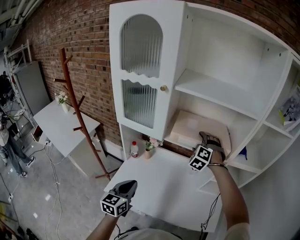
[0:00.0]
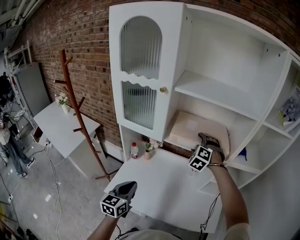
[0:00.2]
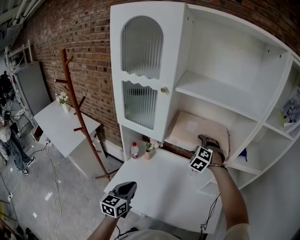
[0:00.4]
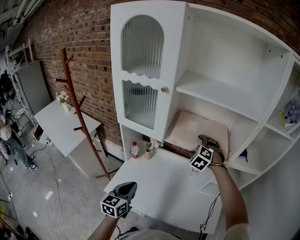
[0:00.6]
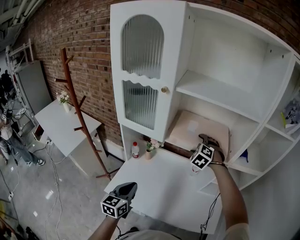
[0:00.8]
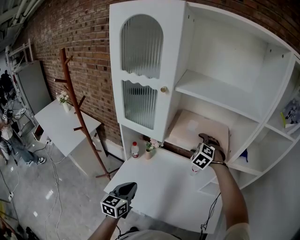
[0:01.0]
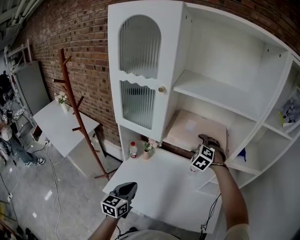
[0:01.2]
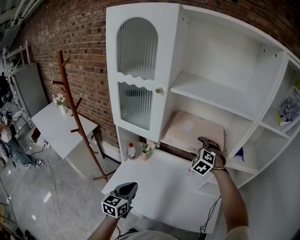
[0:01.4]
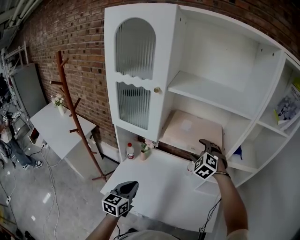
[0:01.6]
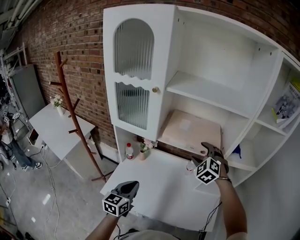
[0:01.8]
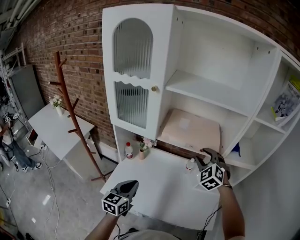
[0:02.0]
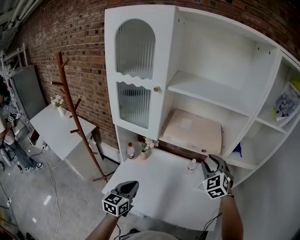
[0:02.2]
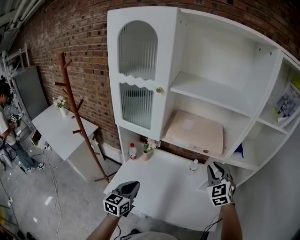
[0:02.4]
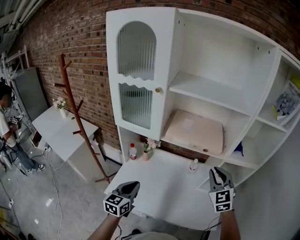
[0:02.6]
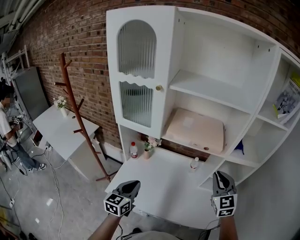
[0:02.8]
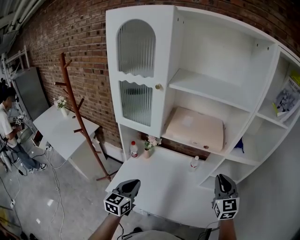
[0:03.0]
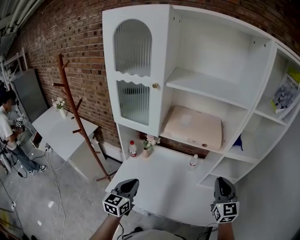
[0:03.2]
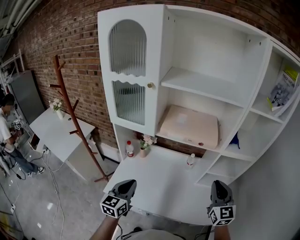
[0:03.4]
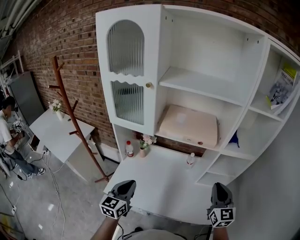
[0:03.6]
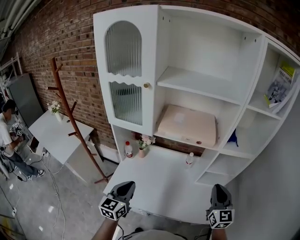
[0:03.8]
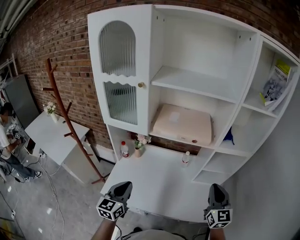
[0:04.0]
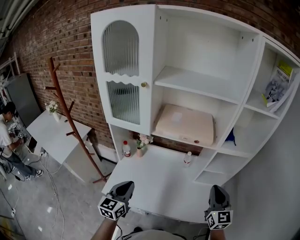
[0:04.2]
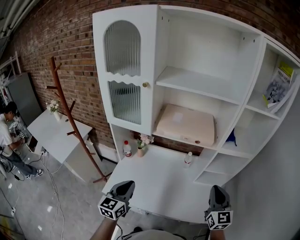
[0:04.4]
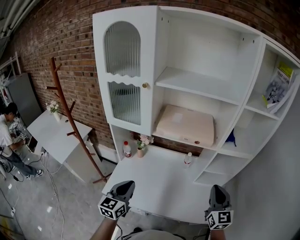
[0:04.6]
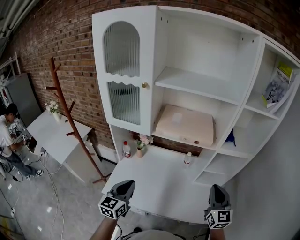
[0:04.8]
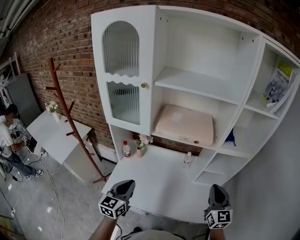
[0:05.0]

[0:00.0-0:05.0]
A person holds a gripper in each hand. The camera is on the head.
0:00.0 to 0:01.6: The right gripper shifts about 5 cm backward.
0:01.6 to 0:03.4: The right gripper is displaced backward and to the right by about 25 cm, twists about 50 degrees clockwise, seen from behind, and closes up.
0:03.4 to 0:05.0: There are only small adjustments of the grippers.

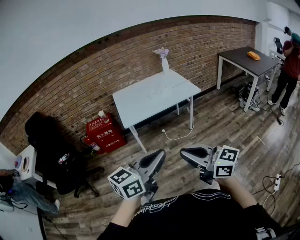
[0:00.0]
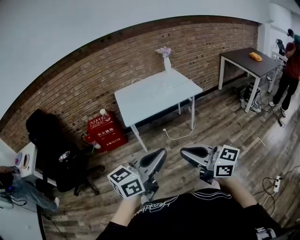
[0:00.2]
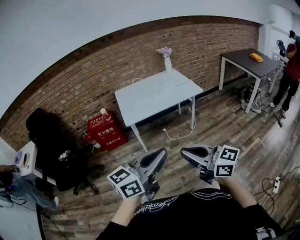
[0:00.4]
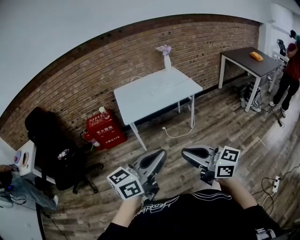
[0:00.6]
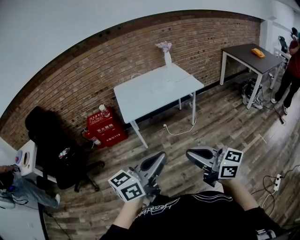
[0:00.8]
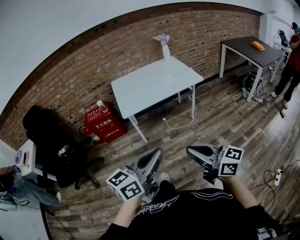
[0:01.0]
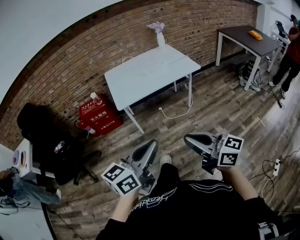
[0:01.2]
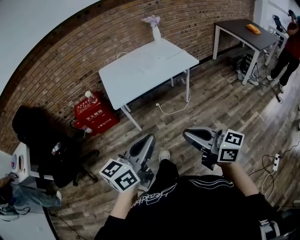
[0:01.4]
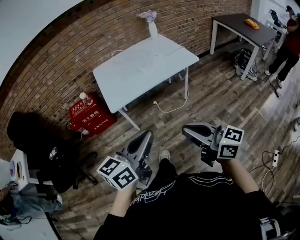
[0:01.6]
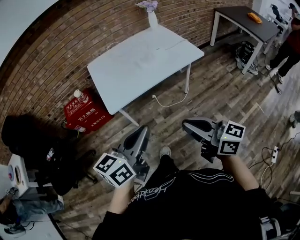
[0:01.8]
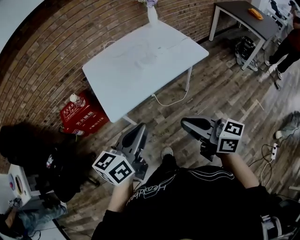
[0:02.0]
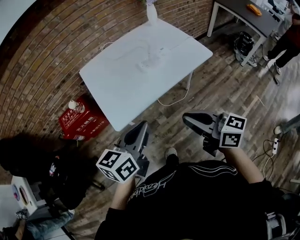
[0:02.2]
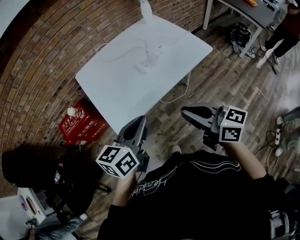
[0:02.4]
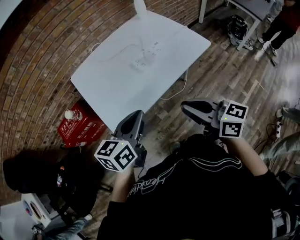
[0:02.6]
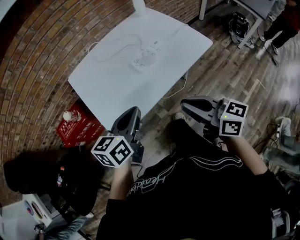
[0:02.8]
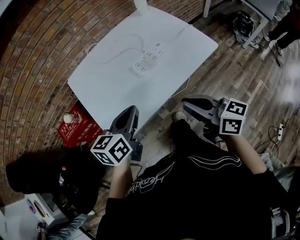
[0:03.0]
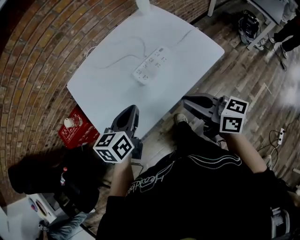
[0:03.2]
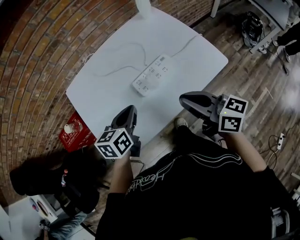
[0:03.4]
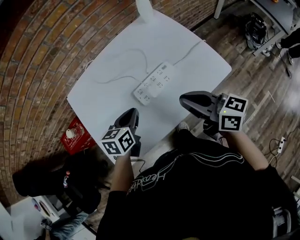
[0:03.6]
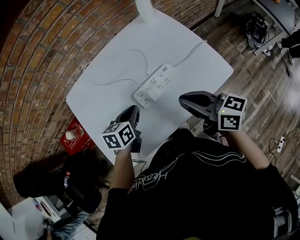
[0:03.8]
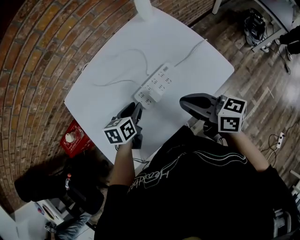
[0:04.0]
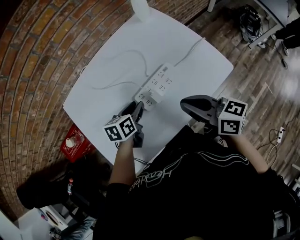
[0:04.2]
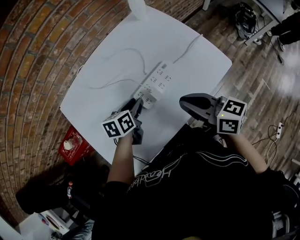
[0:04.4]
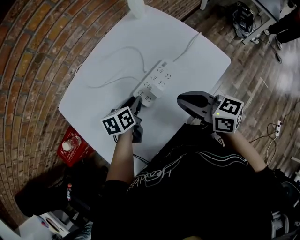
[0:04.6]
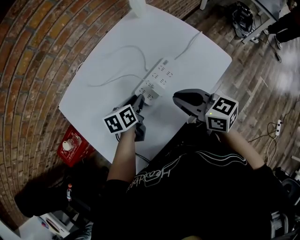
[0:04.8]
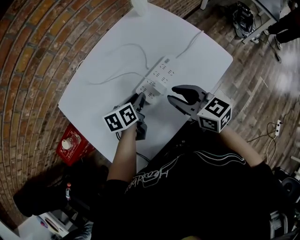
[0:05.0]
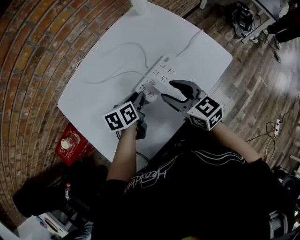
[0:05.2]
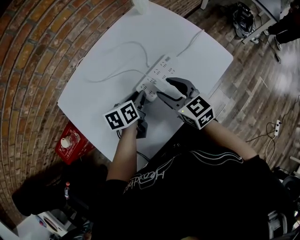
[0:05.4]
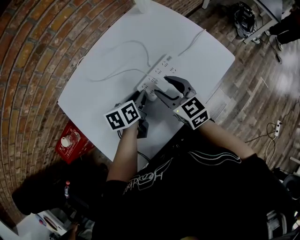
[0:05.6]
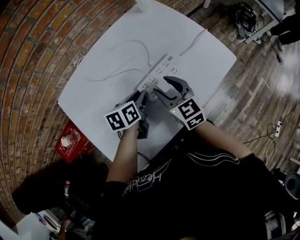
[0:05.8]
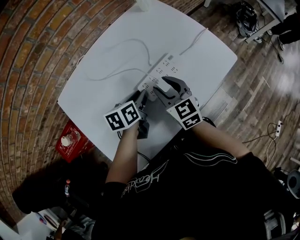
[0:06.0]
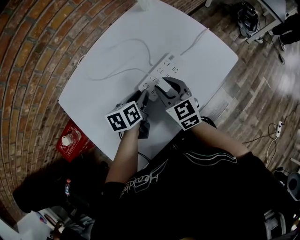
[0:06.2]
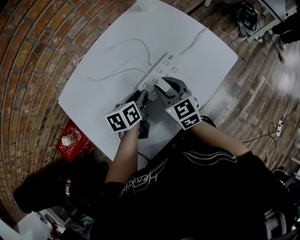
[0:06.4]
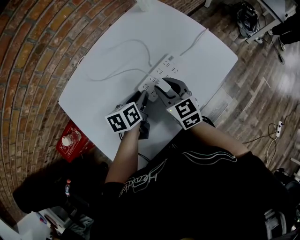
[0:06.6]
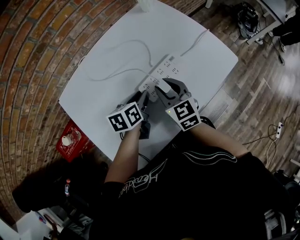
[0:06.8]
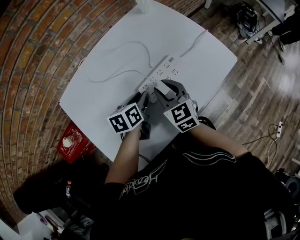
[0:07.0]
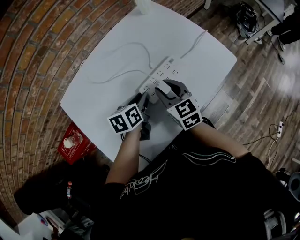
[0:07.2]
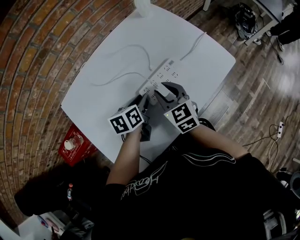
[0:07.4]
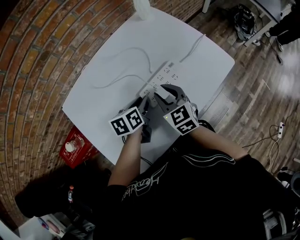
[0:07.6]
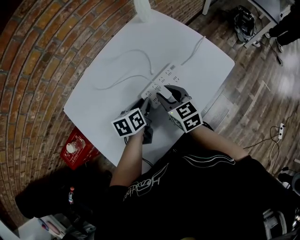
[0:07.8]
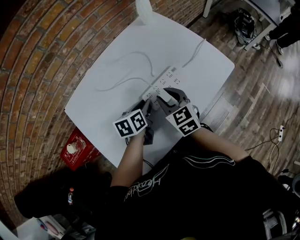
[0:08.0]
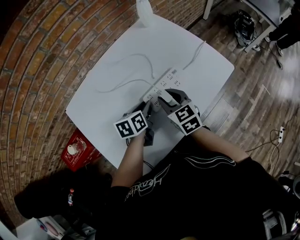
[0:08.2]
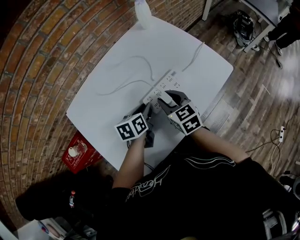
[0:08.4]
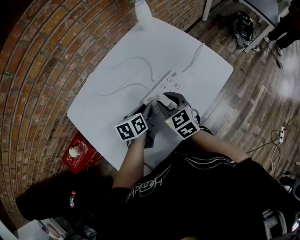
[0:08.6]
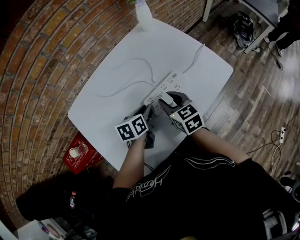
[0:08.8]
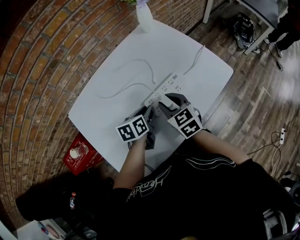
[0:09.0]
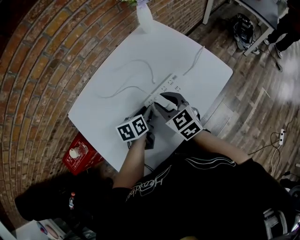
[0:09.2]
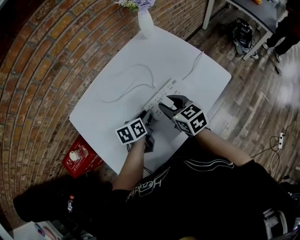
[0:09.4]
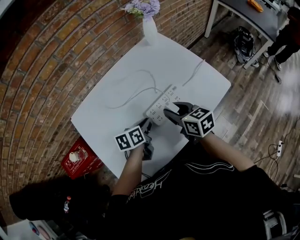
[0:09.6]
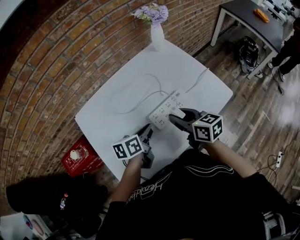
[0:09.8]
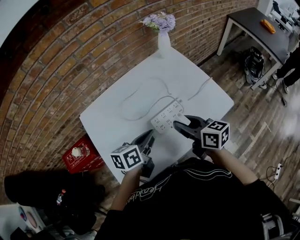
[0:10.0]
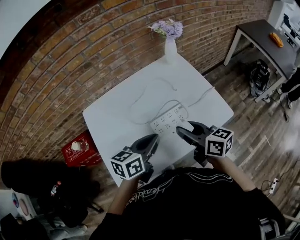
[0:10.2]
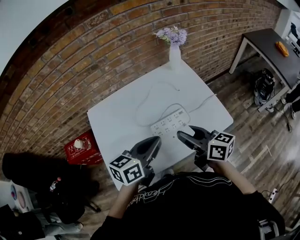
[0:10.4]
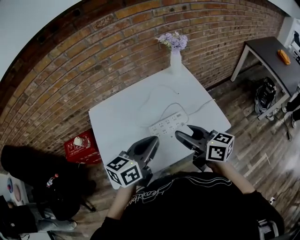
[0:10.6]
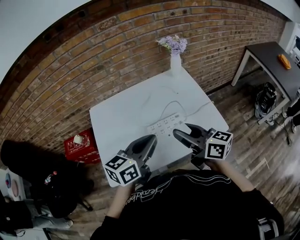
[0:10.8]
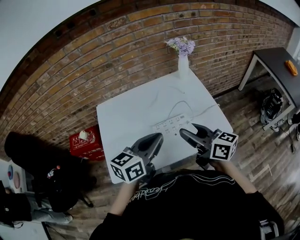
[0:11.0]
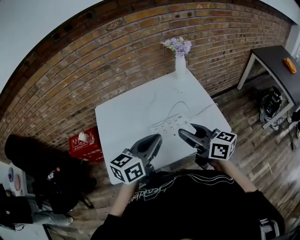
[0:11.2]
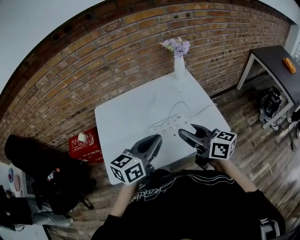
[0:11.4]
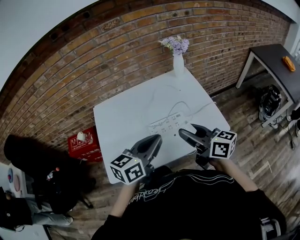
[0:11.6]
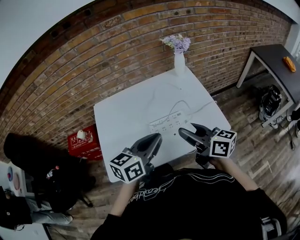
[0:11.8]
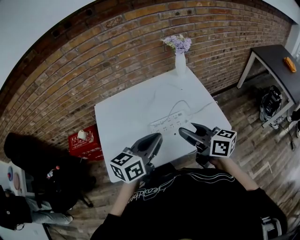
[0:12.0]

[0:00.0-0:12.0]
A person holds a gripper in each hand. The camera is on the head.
0:00.0 to 0:01.6: The right gripper moves forward and downward, about 20 cm. The left gripper is displaced forward by approximately 15 cm.
0:01.6 to 0:03.0: The two grippers travel together, forward, some 40 cm.
0:03.0 to 0:04.4: The left gripper shifts approximately 30 cm forward and downward, changes its angle by some 20 degrees, and opens its fingers, while the right gripper heads forward, covering roughly 20 cm.
0:04.4 to 0:06.0: The right gripper heads downward, to the left and forward, covering some 15 cm, turns by about 40 degrees, and opens its fingers.
0:06.0 to 0:09.0: There are only small adjustments of the grippers.
0:09.0 to 0:10.4: The left gripper is displaced upward by approximately 25 cm, swivels approximately 30 degrees, and closes its fingers. Meanwhile the right gripper moves upward and to the right, approximately 20 cm, and swivels some 50 degrees.
0:10.4 to 0:12.0: The left gripper changes place by about 5 cm. The right gripper ends up roughly 5 cm from where it was.

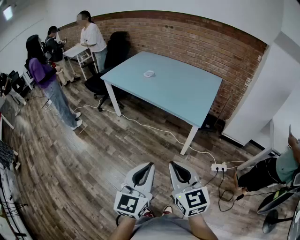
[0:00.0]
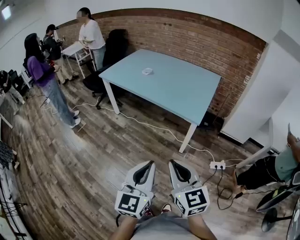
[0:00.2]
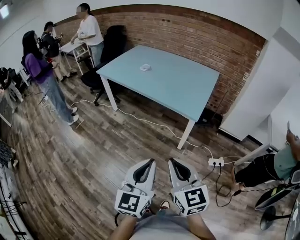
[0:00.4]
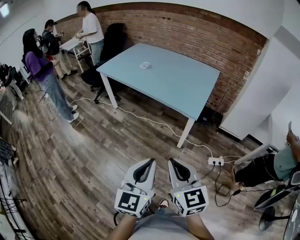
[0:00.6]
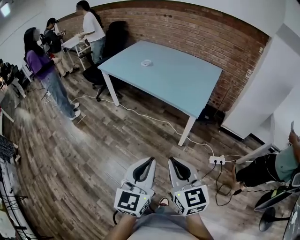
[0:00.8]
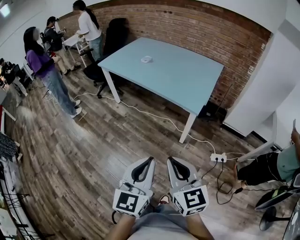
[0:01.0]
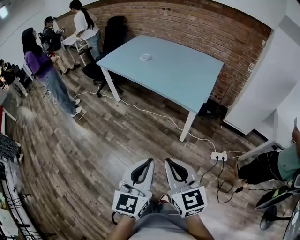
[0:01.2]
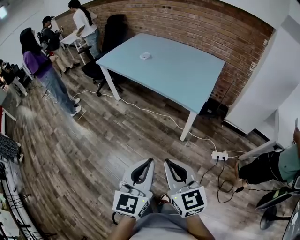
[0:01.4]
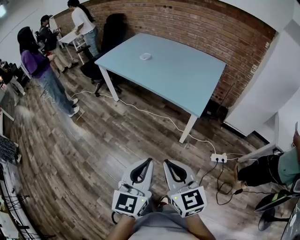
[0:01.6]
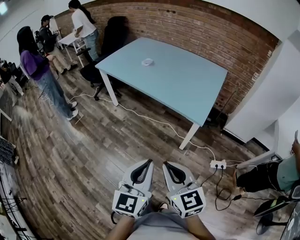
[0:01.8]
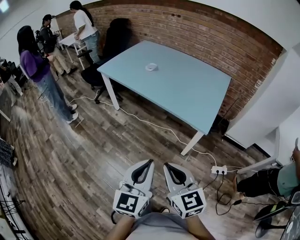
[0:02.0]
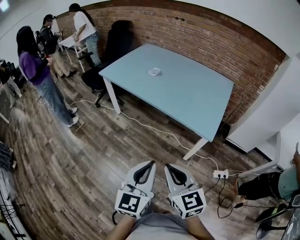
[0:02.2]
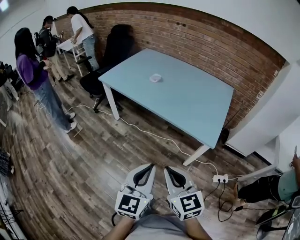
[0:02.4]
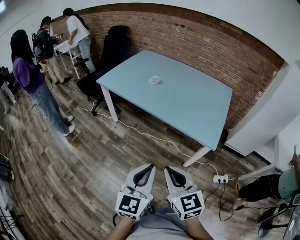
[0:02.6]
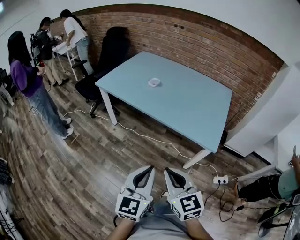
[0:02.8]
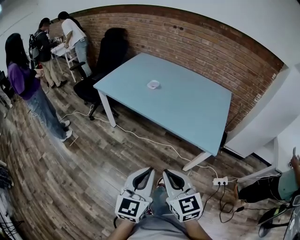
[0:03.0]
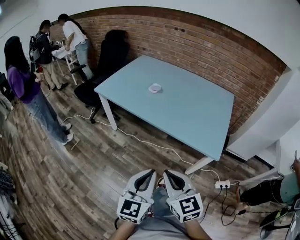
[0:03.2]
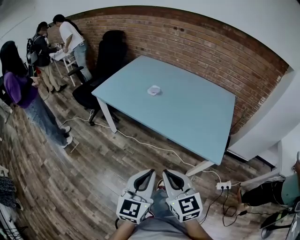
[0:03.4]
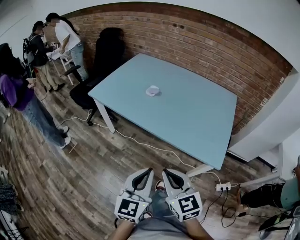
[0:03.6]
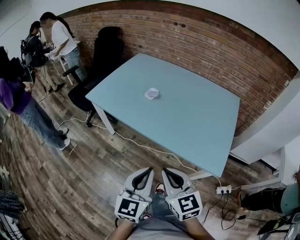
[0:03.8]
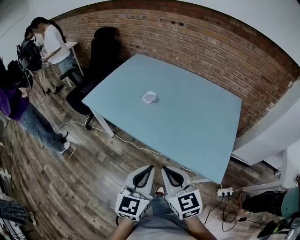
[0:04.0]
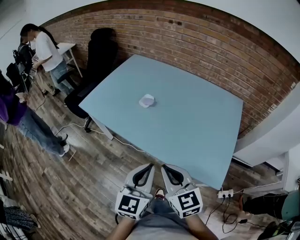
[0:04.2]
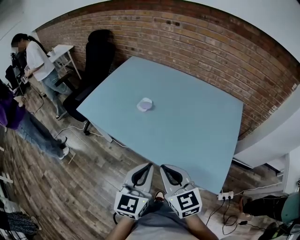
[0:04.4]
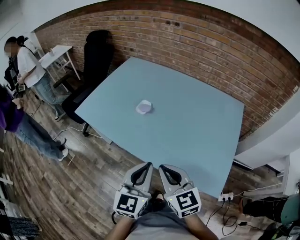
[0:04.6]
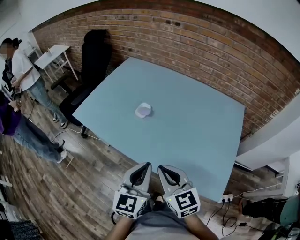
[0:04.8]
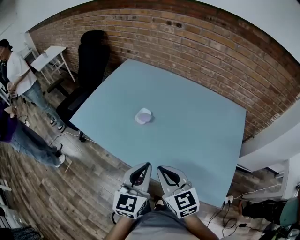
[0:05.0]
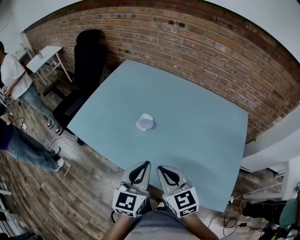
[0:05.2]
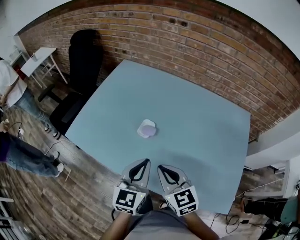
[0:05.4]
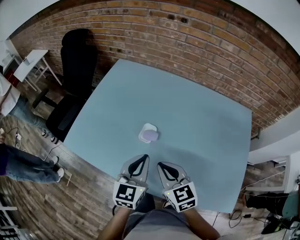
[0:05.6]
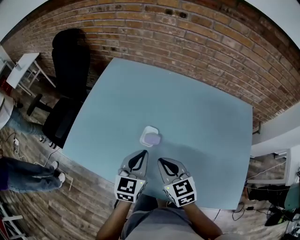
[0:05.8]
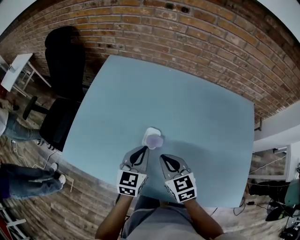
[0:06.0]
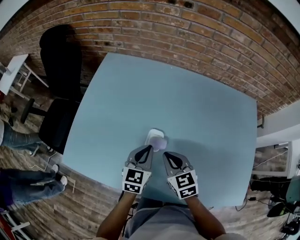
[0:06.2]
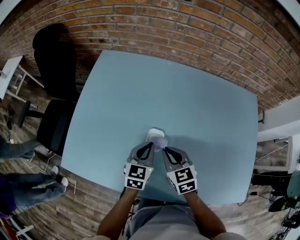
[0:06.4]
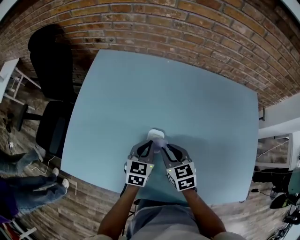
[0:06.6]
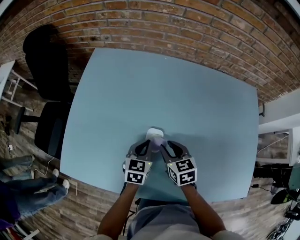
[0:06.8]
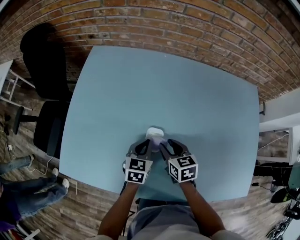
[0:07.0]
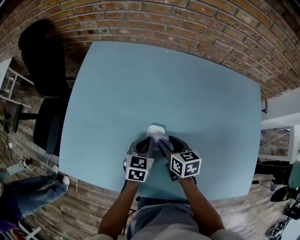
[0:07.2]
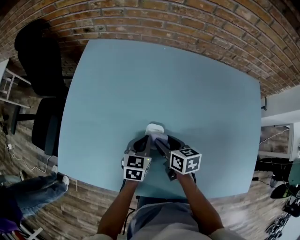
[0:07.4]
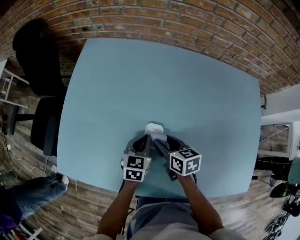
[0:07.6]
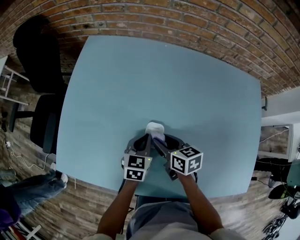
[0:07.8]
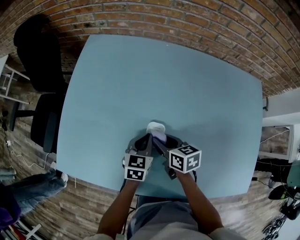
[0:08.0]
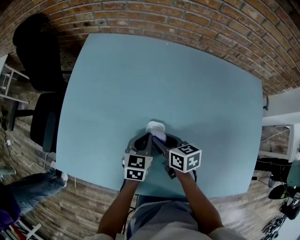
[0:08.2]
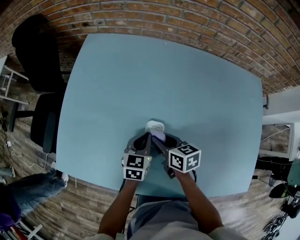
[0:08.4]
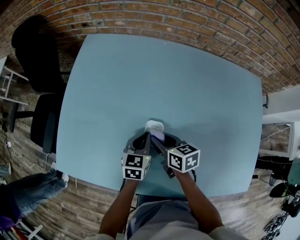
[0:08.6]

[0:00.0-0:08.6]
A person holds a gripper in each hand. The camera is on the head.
0:00.0 to 0:01.4: The right gripper ends up some 5 cm from where it was. Meanwhile the left gripper moves to the right, some 5 cm.
0:01.4 to 0:02.8: The two grippers go roughly 30 cm forward and to the left.
0:02.8 to 0:04.4: The two grippers go roughly 35 cm forward.
0:04.4 to 0:05.8: The grippers both shift forward by approximately 35 cm.
0:05.8 to 0:07.2: Both grippers travel together downward and forward, about 20 cm. The right gripper rotates approximately 30 degrees, and opens. Meanwhile the left gripper swivels about 20 degrees.
0:07.2 to 0:08.6: The right gripper closes up.
